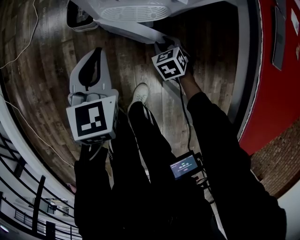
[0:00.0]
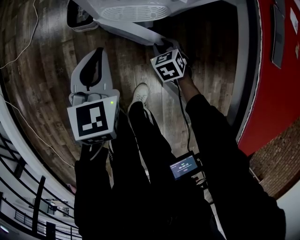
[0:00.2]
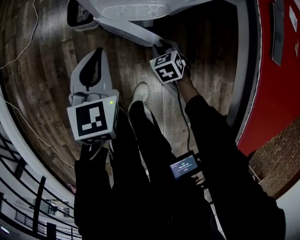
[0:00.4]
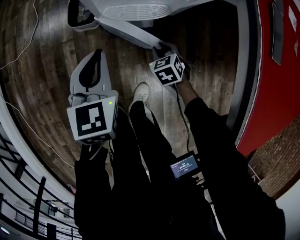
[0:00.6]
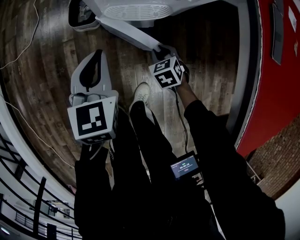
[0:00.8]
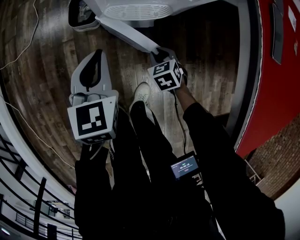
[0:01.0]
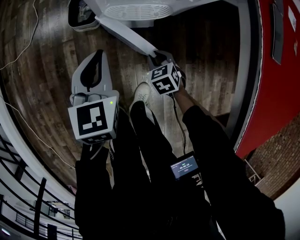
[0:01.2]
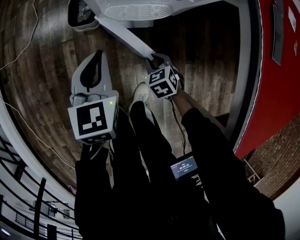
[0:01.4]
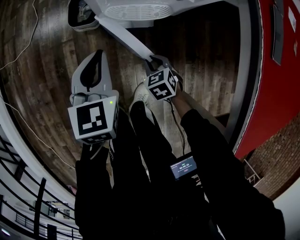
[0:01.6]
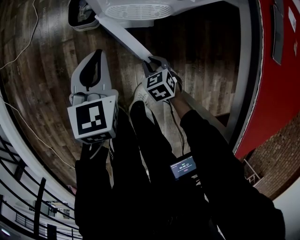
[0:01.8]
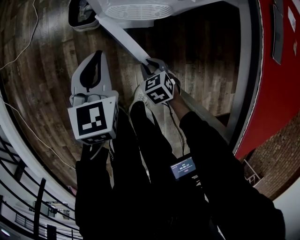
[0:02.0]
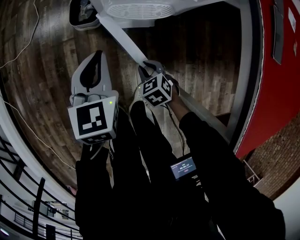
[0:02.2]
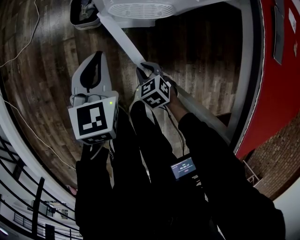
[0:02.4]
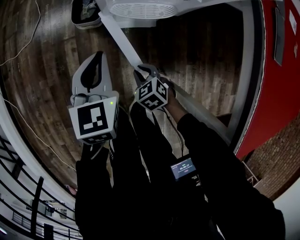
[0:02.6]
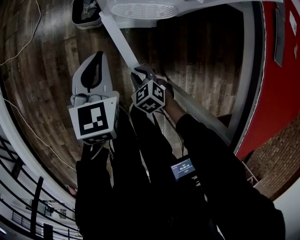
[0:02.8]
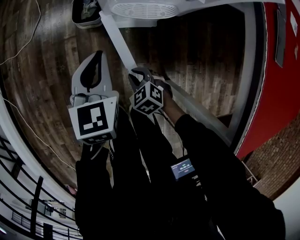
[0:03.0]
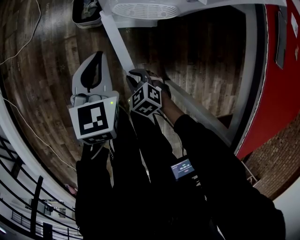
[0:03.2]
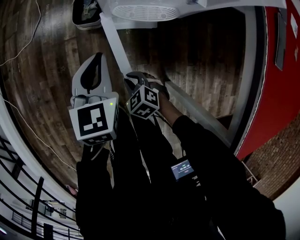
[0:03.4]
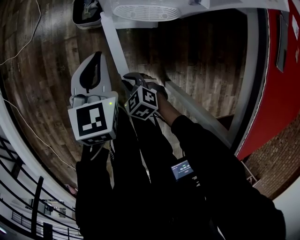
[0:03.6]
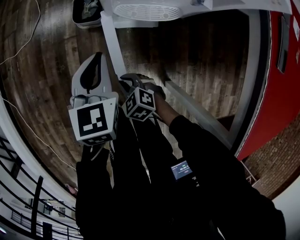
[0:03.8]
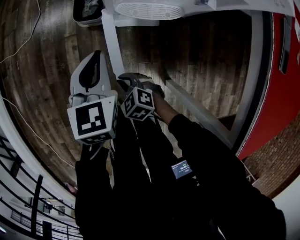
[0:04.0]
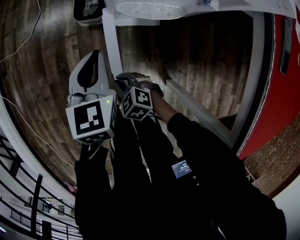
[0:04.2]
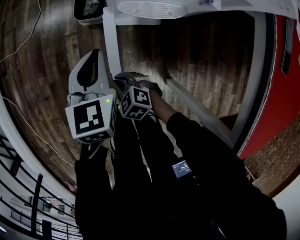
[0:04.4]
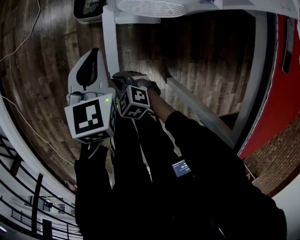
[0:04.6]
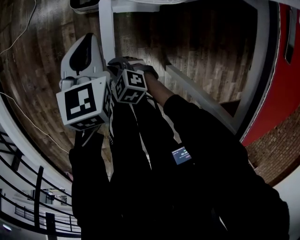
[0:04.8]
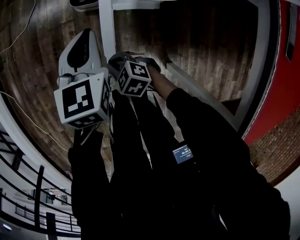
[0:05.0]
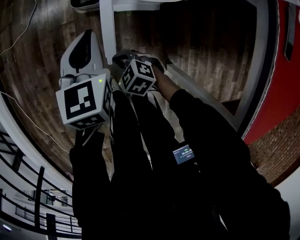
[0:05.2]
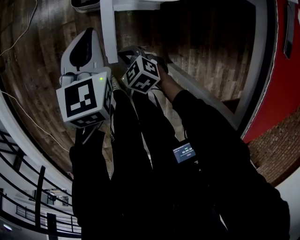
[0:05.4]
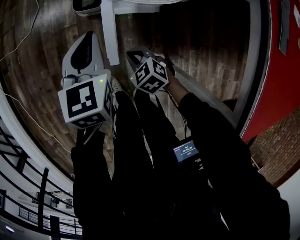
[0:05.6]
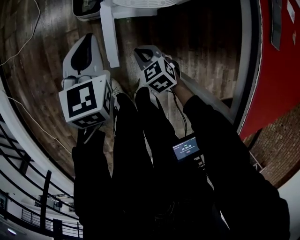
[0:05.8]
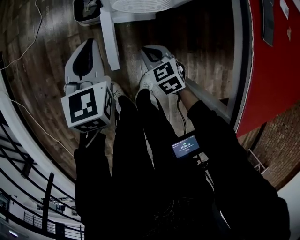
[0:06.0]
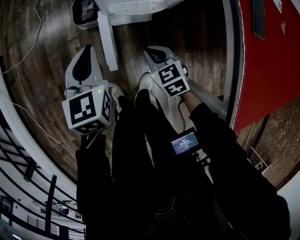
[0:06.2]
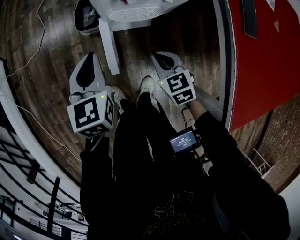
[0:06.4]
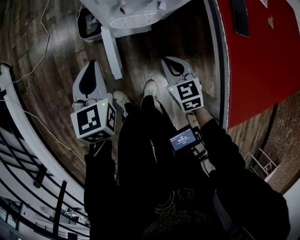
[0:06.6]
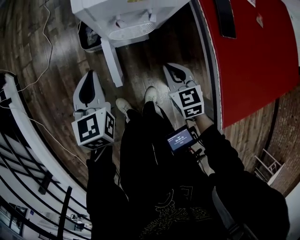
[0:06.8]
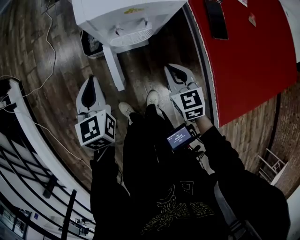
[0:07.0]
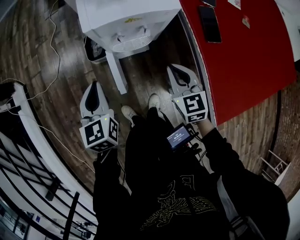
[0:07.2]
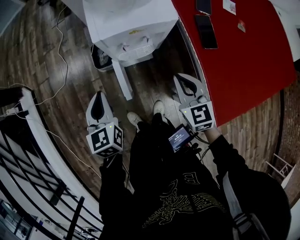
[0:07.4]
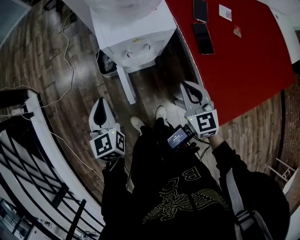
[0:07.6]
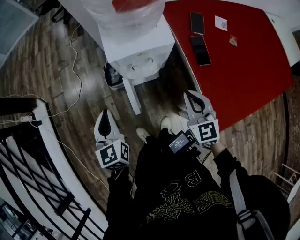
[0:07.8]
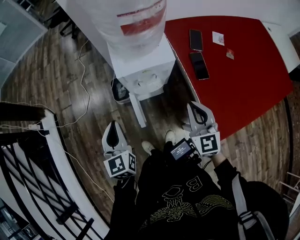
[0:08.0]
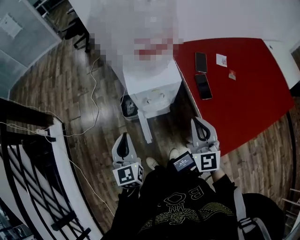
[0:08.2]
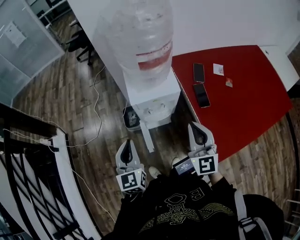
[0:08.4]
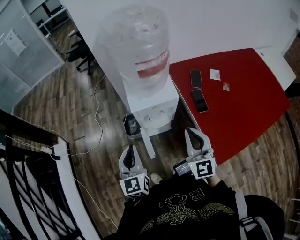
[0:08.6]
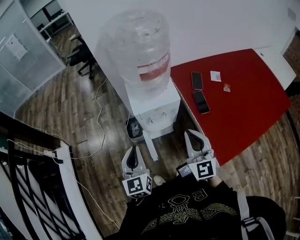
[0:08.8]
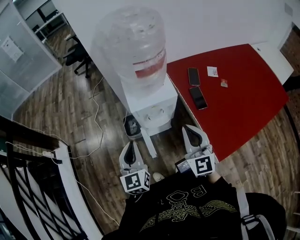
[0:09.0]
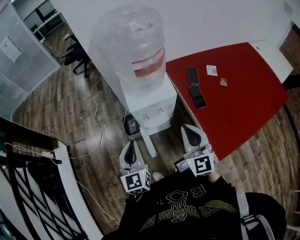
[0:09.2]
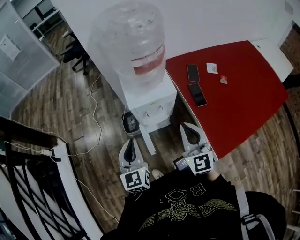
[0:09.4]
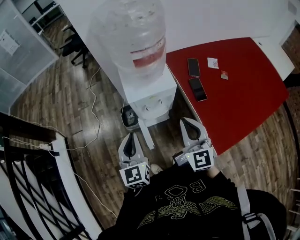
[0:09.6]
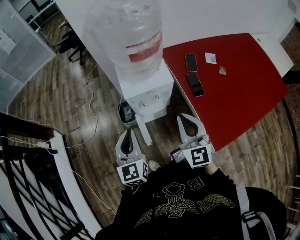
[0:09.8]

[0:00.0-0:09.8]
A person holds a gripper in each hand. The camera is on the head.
0.0 to 1.4 s: The right gripper is displaced backward and to the left by approximately 10 cm.
1.4 to 2.8 s: The right gripper heads to the left, covering some 10 cm.
2.8 to 4.2 s: The right gripper is displaced to the left by approximately 10 cm.
4.2 to 5.6 s: The right gripper travels to the right by roughly 5 cm.
5.6 to 7.0 s: The right gripper shifts approximately 35 cm upward and to the right, and swivels approximately 40 degrees. The left gripper travels upward by roughly 15 cm.
7.0 to 8.4 s: Both grippers move upward, about 30 cm. The right gripper tips its fingers upward by roughly 40 degrees.
8.4 to 9.8 s: The grippers make only small movements.

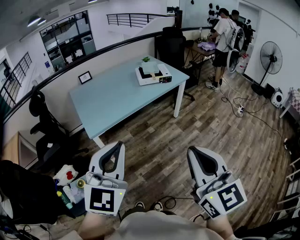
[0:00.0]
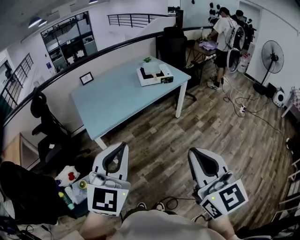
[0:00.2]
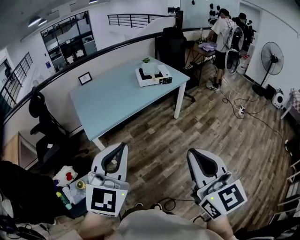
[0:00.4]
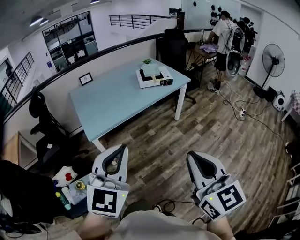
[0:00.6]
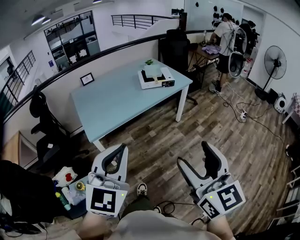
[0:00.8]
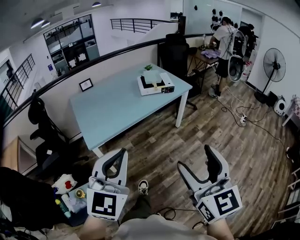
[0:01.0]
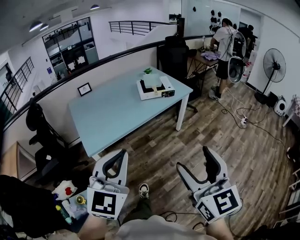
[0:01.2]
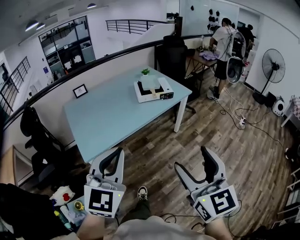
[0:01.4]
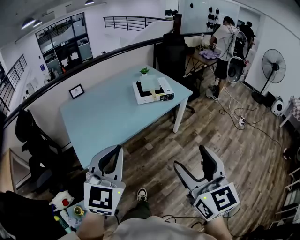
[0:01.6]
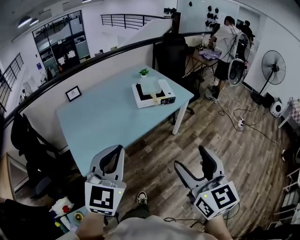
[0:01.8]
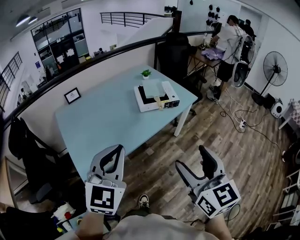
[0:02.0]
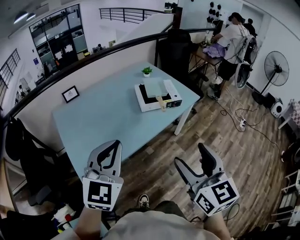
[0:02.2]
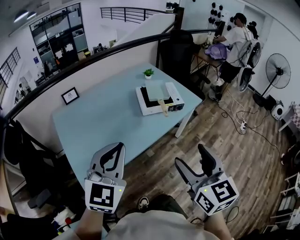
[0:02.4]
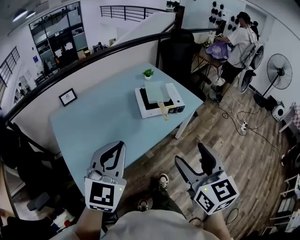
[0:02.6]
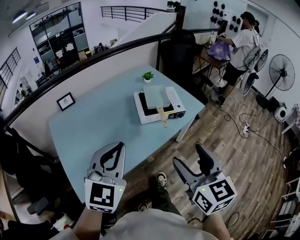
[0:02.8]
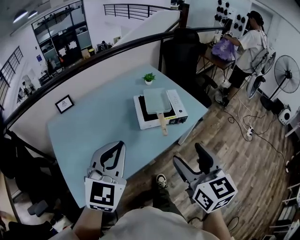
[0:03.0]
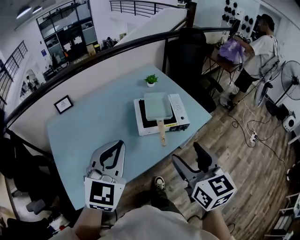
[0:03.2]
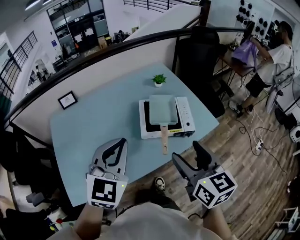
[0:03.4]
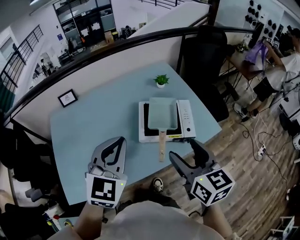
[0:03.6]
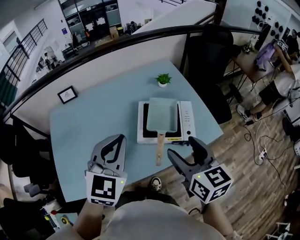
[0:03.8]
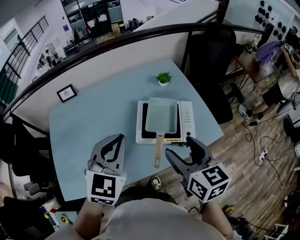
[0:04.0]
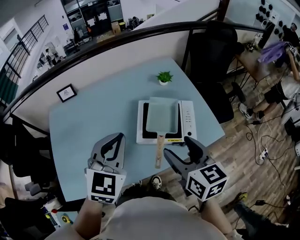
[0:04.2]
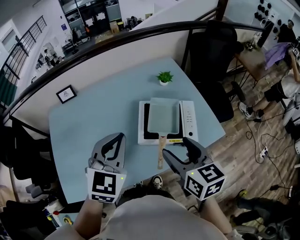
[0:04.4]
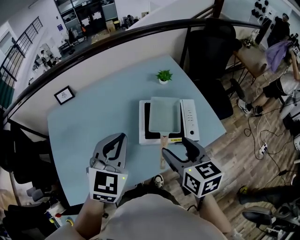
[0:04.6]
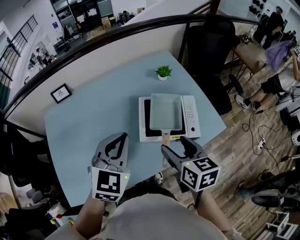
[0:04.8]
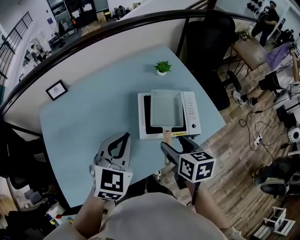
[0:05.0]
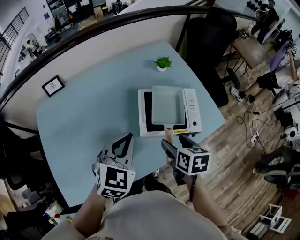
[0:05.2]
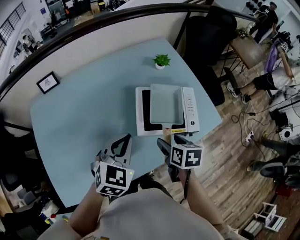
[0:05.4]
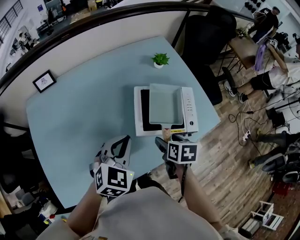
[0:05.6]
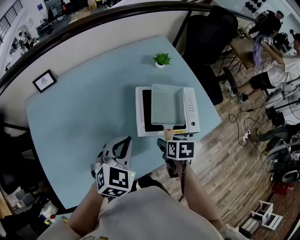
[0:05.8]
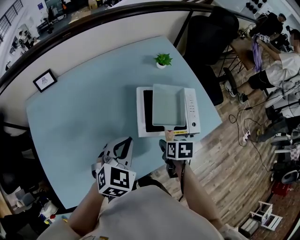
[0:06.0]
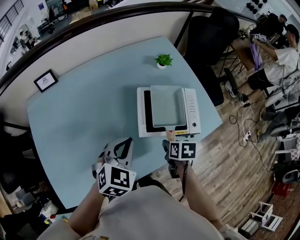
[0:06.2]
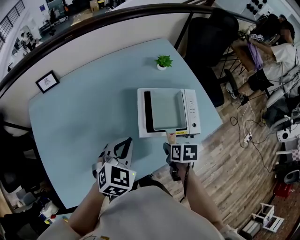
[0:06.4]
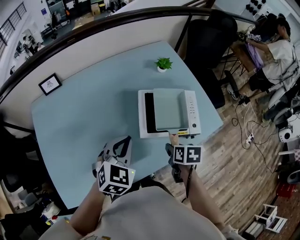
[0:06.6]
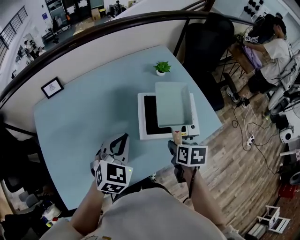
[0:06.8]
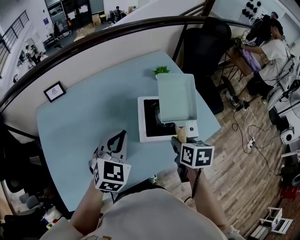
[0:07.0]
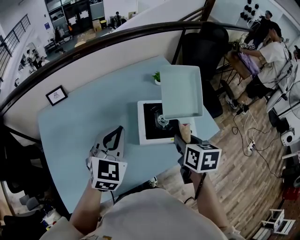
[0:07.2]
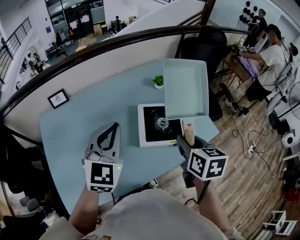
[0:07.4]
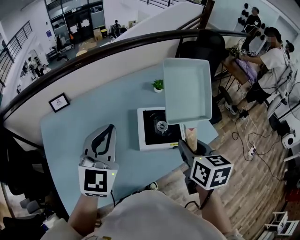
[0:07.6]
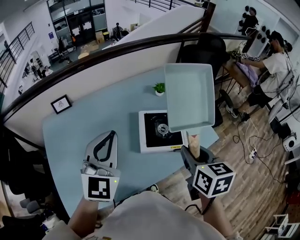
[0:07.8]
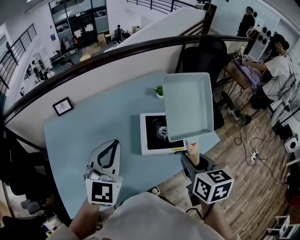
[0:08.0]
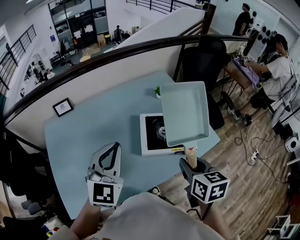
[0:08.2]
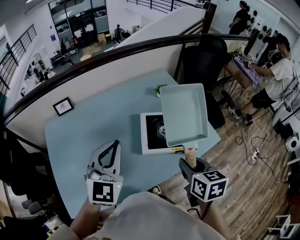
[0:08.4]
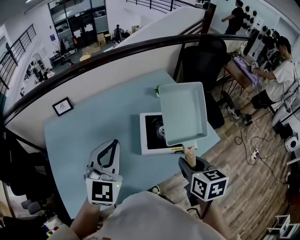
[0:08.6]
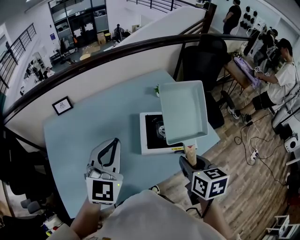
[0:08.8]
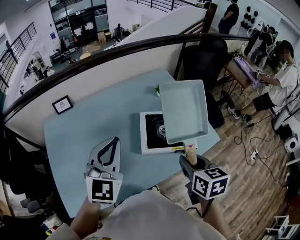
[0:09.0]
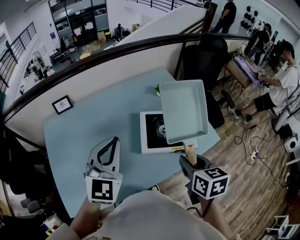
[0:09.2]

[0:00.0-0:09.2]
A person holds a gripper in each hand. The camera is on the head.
0.0 to 1.6 s: The grippers both shift forward by some 25 cm. The right gripper opens.
1.6 to 3.0 s: The two grippers go approximately 40 cm forward.
3.0 to 4.6 s: The left gripper is displaced forward and to the right by about 25 cm. The right gripper travels forward by approximately 25 cm, and turns by about 20 degrees.
4.6 to 6.2 s: The left gripper moves downward, roughly 15 cm, while the right gripper travels downward by roughly 25 cm, tips its fingers downward by some 40 degrees, and closes up.
6.2 to 7.6 s: Both grippers travel together upward, roughly 25 cm. The left gripper points its fingers roughly 30 degrees further upward, while the right gripper turns by some 30 degrees.
7.6 to 9.2 s: The right gripper changes place by approximately 5 cm.

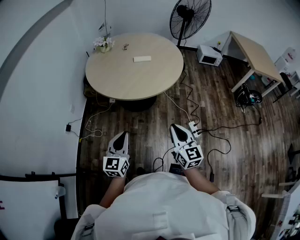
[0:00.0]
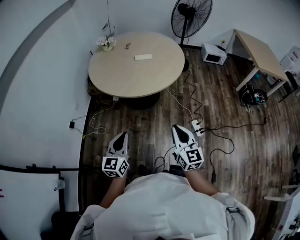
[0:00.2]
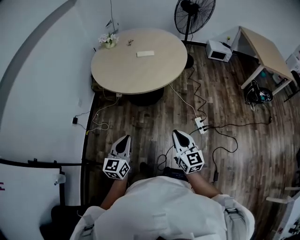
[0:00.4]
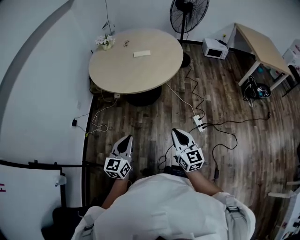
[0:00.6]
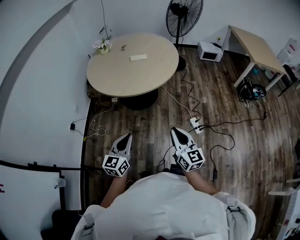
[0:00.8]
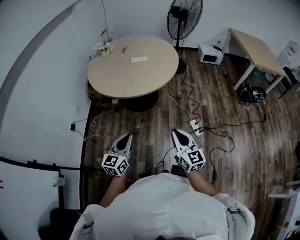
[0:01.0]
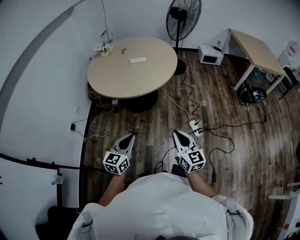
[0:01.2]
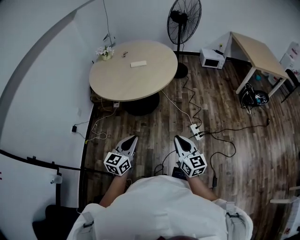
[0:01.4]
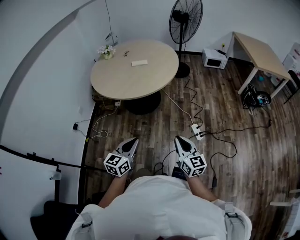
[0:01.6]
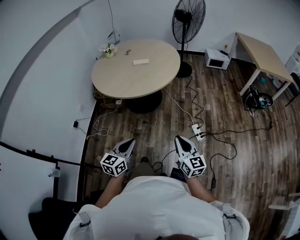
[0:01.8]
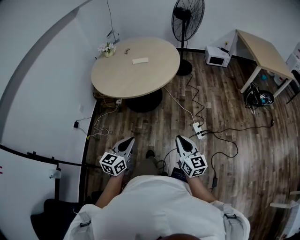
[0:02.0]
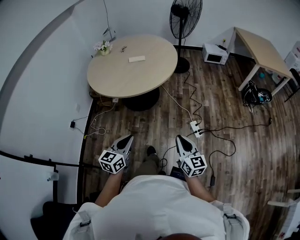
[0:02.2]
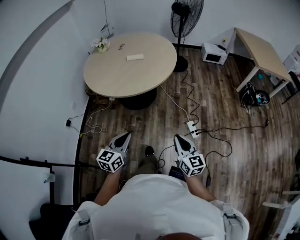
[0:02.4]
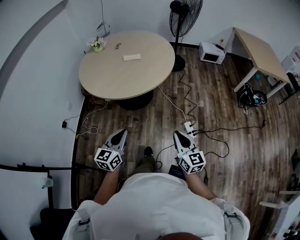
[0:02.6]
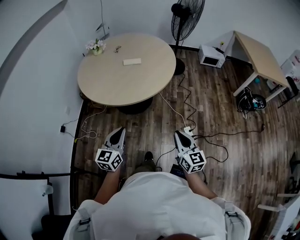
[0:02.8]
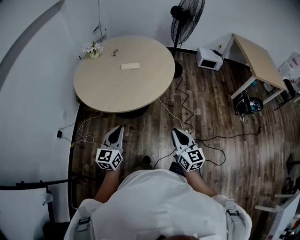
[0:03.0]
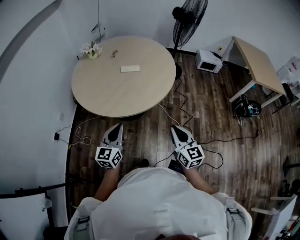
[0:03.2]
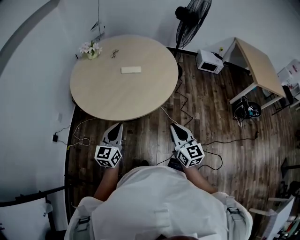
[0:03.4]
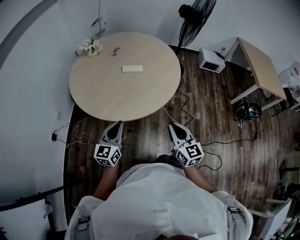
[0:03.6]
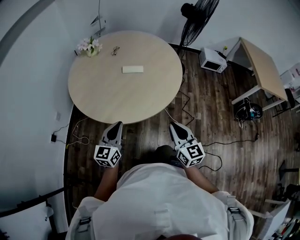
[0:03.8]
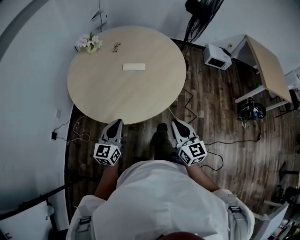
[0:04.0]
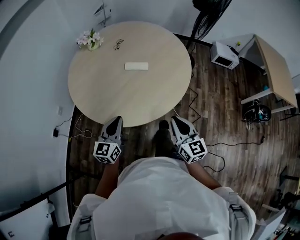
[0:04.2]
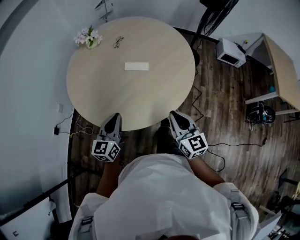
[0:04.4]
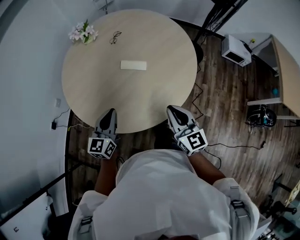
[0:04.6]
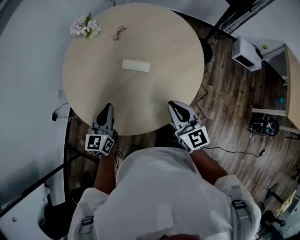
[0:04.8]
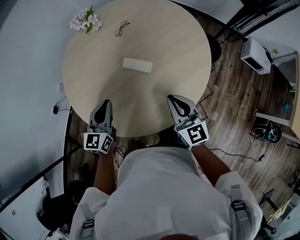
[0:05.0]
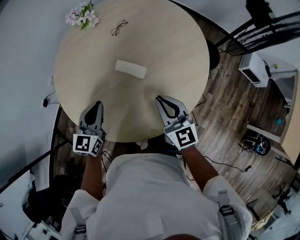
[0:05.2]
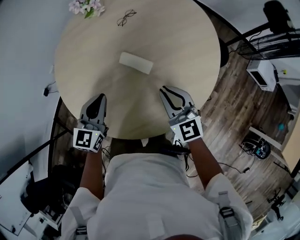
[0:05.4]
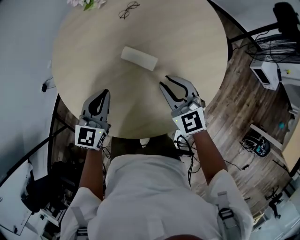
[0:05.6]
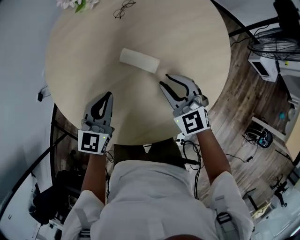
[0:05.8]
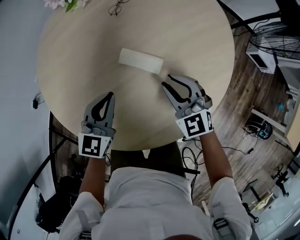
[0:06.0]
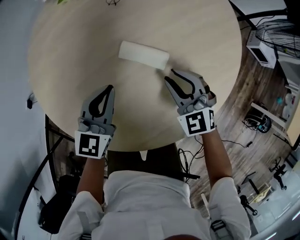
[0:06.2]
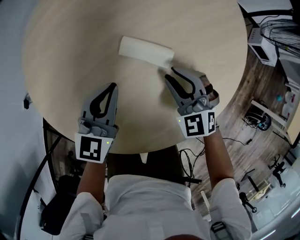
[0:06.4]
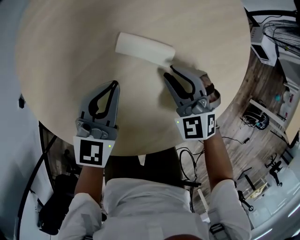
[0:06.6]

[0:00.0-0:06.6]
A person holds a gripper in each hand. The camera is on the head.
0.0 to 1.6 s: Both grippers move to the right and backward, about 20 cm.
1.6 to 3.2 s: The two grippers go about 30 cm forward.
3.2 to 5.0 s: The pair of grippers is taken approximately 50 cm. The left gripper swivels some 30 degrees. Meanwhile the right gripper rotates roughly 30 degrees.
5.0 to 6.6 s: The grippers both shift downward and forward by roughly 25 cm. The left gripper changes its angle by some 20 degrees. The right gripper rolls counterclockwise, seen from behind, by roughly 40 degrees, and opens up.
